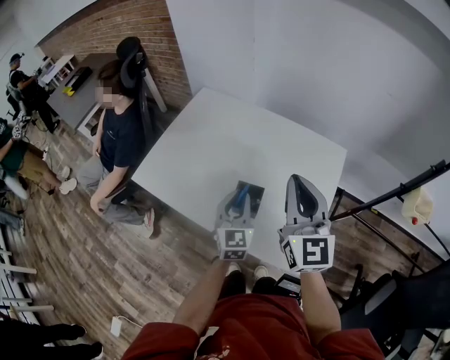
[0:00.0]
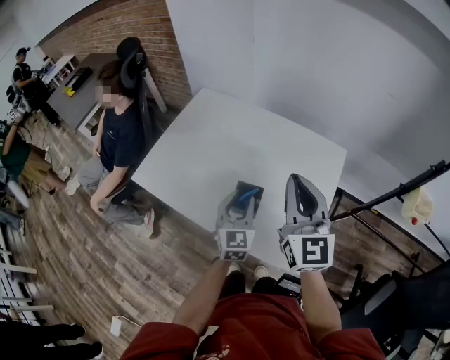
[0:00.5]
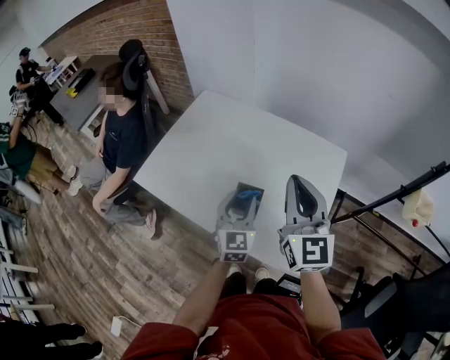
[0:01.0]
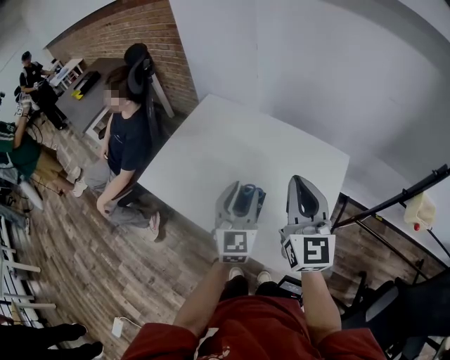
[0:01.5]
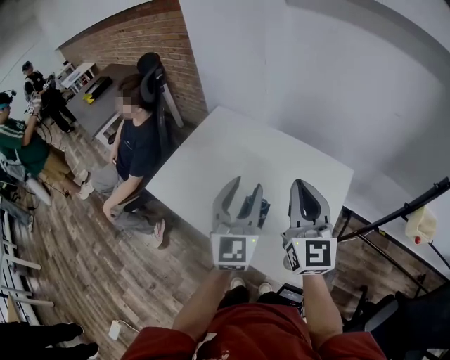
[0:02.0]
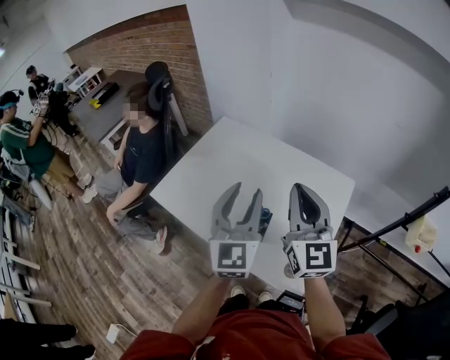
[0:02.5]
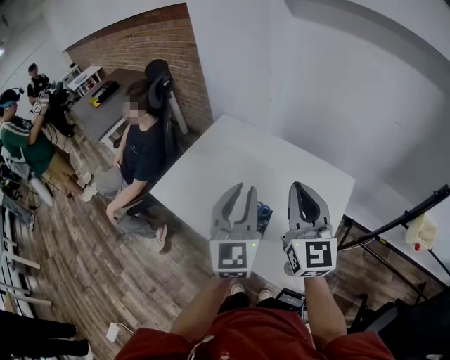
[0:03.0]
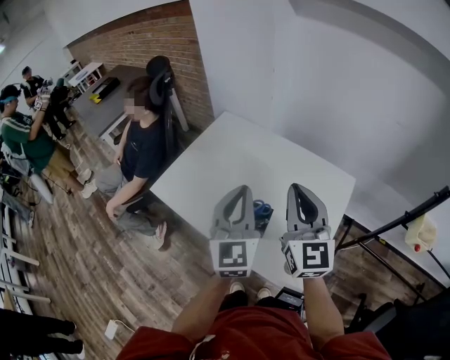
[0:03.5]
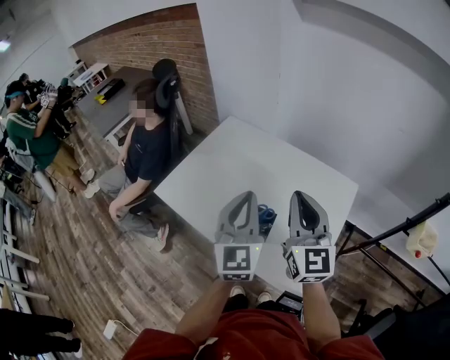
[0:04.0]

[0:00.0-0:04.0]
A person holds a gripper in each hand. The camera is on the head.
0:00.0 to 0:02.0: The left gripper goes roughly 20 cm upward, and opens up.
0:02.0 to 0:04.0: The left gripper closes.

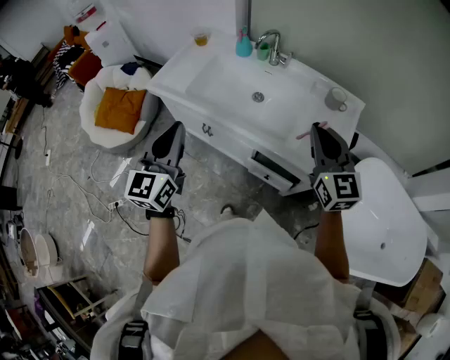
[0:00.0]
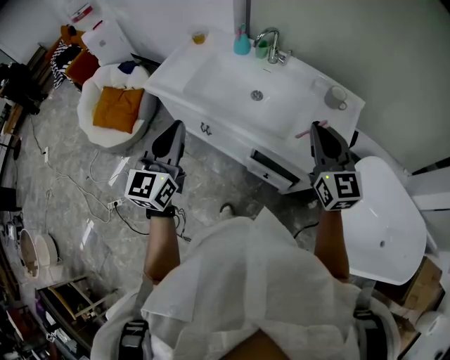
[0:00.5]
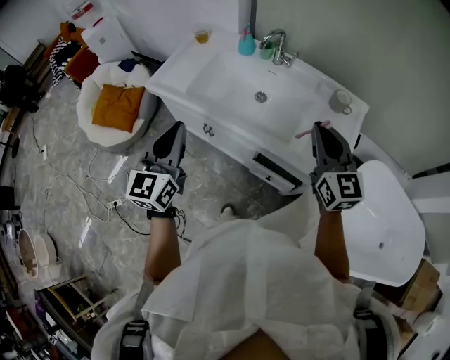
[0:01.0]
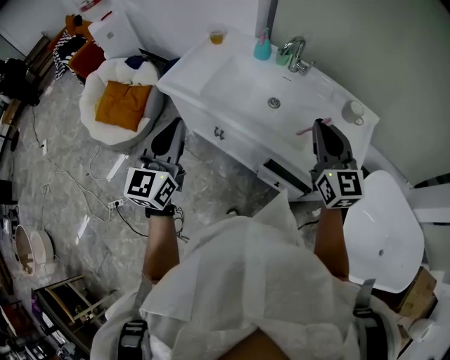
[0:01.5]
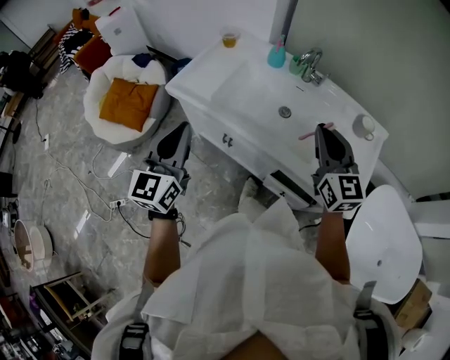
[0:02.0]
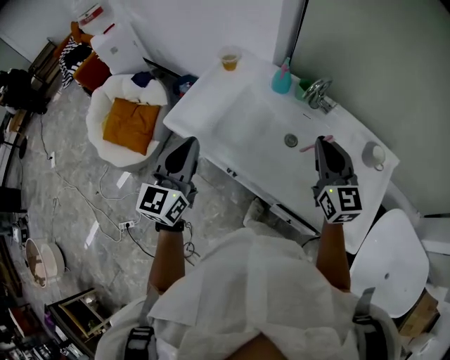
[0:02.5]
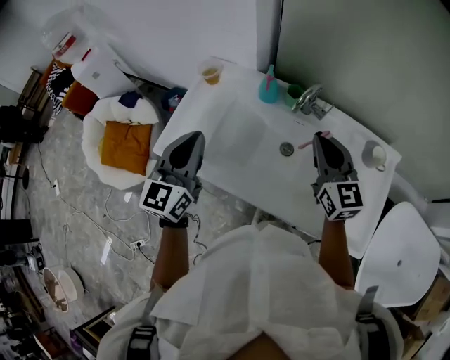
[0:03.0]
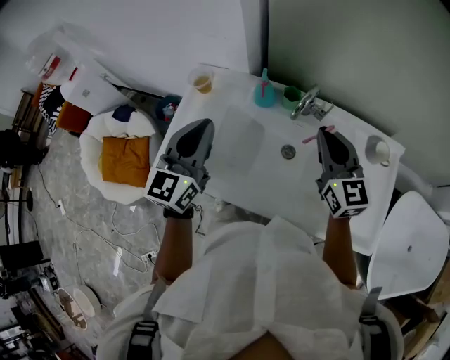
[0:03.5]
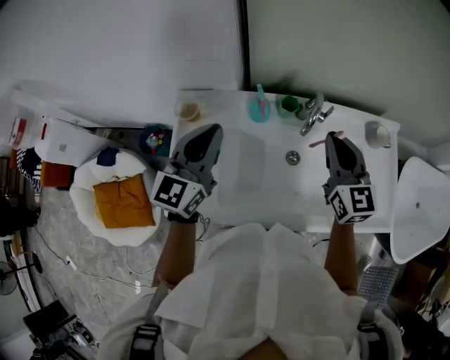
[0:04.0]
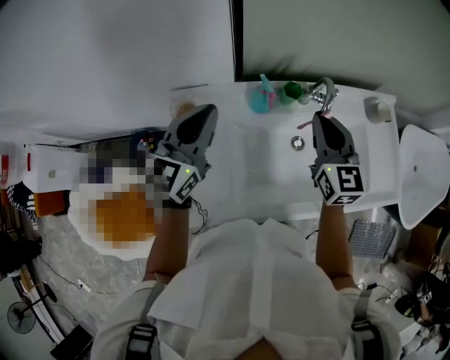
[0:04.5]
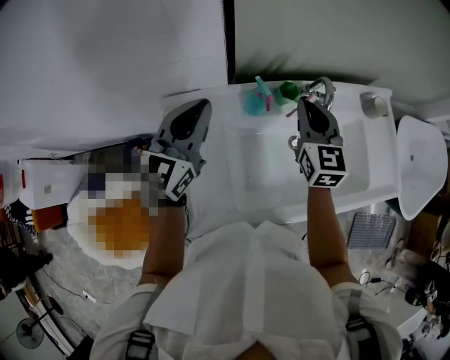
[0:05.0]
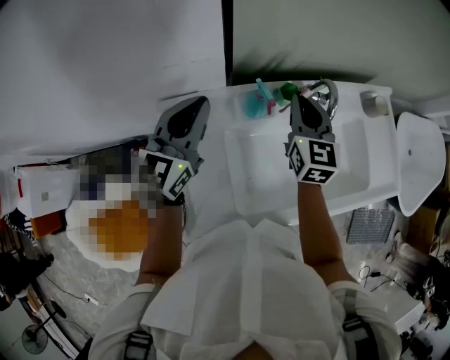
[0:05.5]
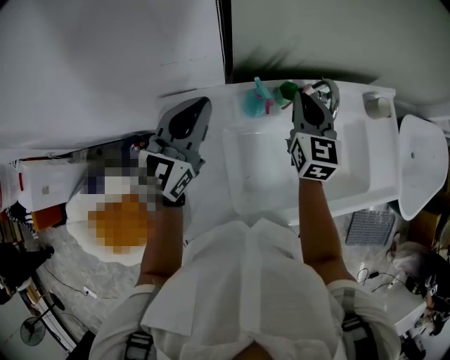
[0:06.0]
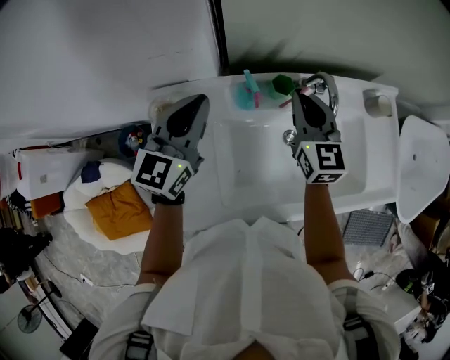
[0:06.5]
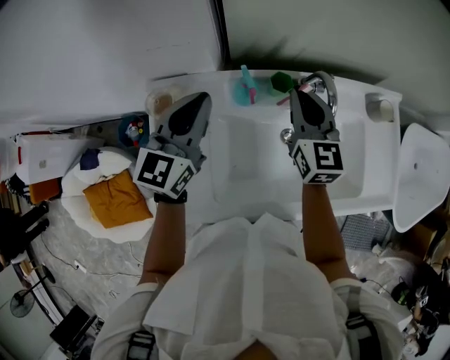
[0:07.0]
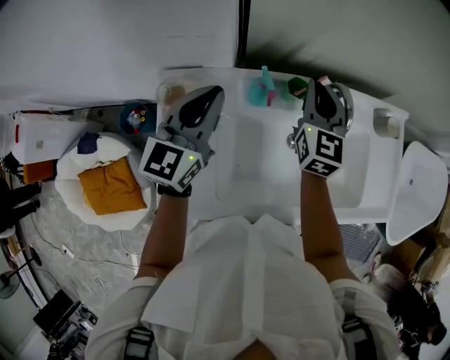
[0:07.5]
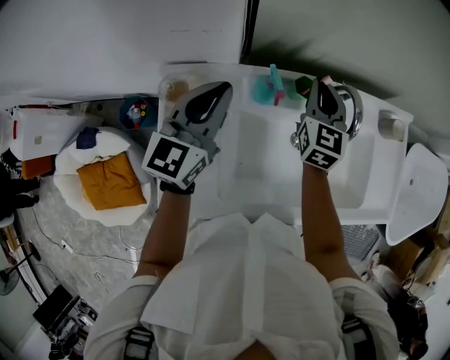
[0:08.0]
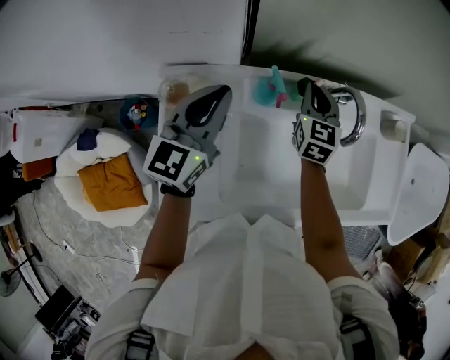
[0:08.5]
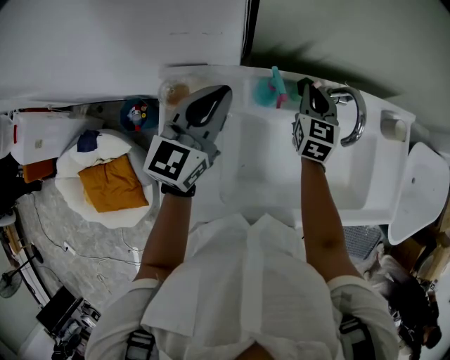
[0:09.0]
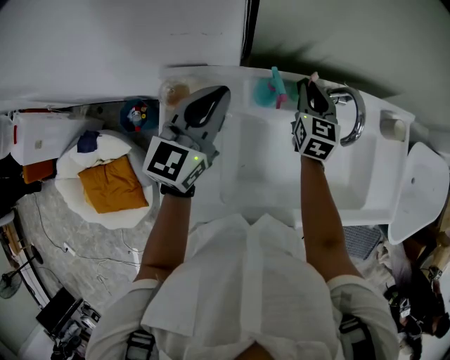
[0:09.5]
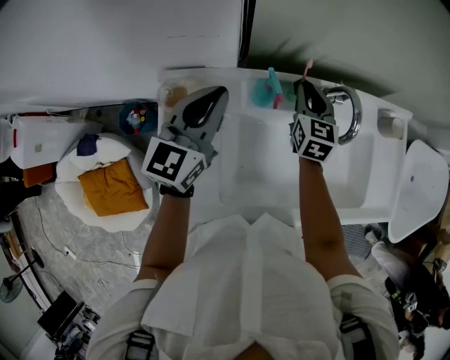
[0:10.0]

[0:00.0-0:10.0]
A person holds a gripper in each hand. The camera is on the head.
0:00.0 to 0:02.0: The two grippers go some 15 cm to the left and forward.
0:02.0 to 0:04.0: The right gripper changes place by some 25 cm, and rotates about 30 degrees, while the left gripper shifts by about 40 cm, and swivels some 40 degrees.
0:04.0 to 0:06.0: The left gripper is displaced forward and to the left by some 10 cm, while the right gripper moves to the left, forward and downward, about 15 cm, and rotates approximately 20 degrees.
0:06.0 to 0:08.0: The right gripper moves some 5 cm.
0:08.0 to 0:10.0: The right gripper heads downward, covering approximately 5 cm.

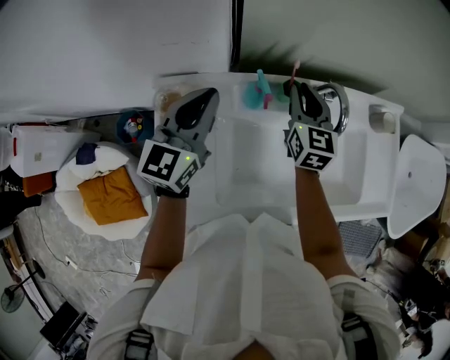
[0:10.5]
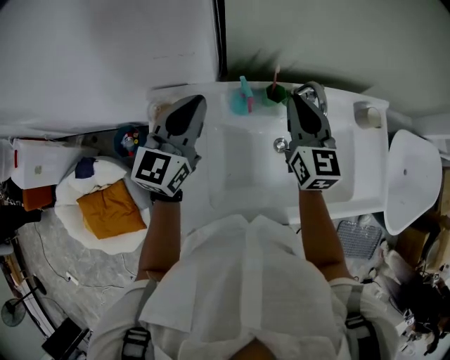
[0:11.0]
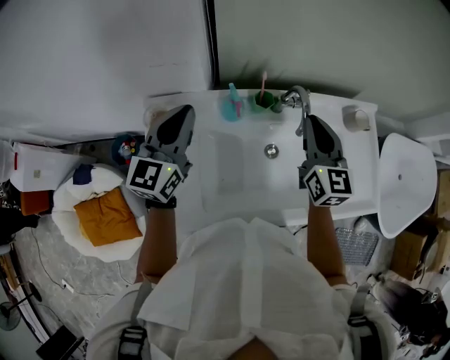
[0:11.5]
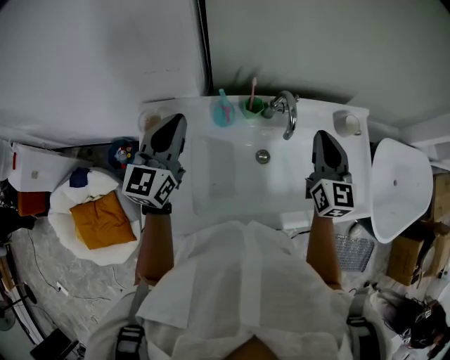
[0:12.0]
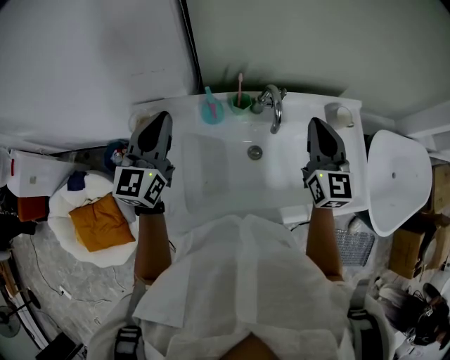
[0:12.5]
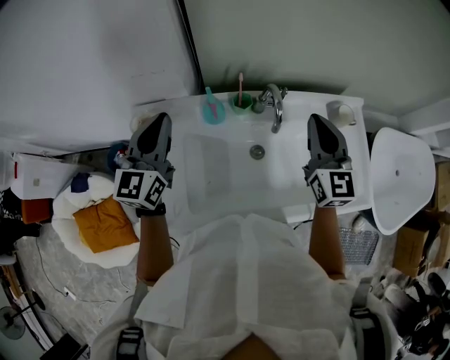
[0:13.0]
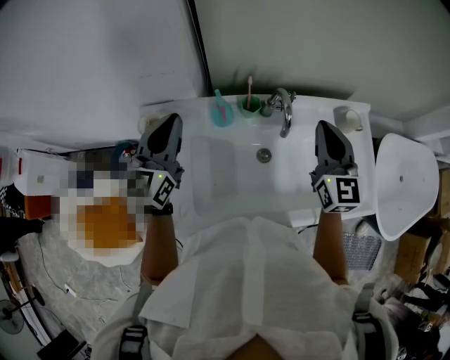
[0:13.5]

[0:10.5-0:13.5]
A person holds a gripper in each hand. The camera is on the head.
0:10.5 to 0:12.0: The left gripper changes place by about 5 cm, while the right gripper moves to the right, backward and upward, roughly 20 cm.
0:12.0 to 0:13.5: The grippers move only a little.

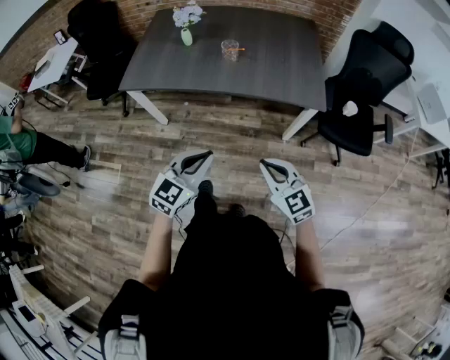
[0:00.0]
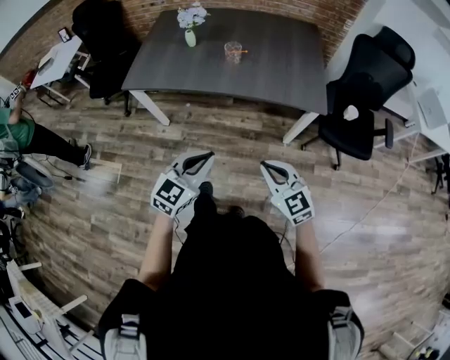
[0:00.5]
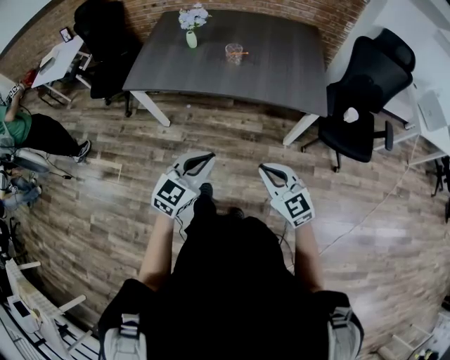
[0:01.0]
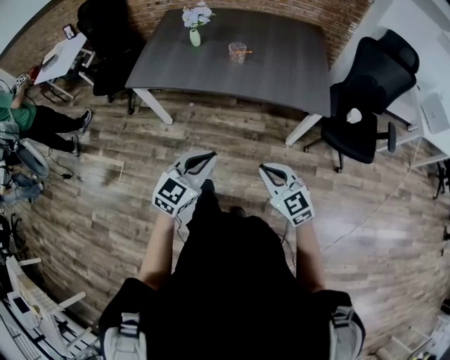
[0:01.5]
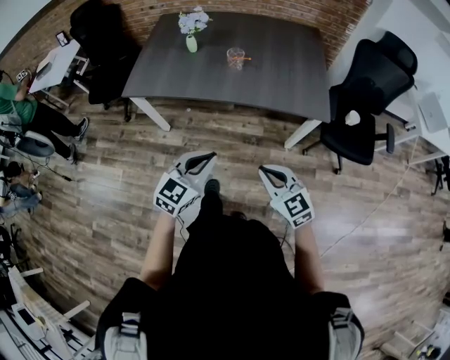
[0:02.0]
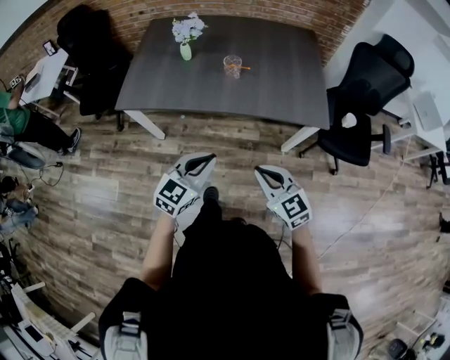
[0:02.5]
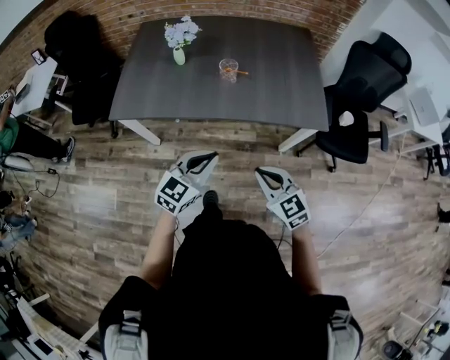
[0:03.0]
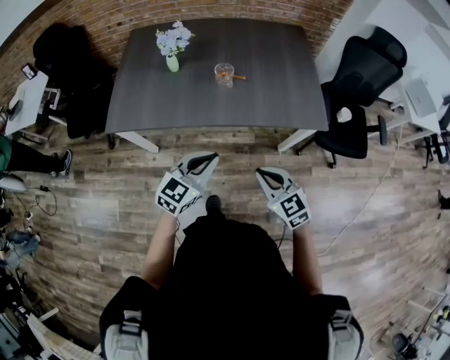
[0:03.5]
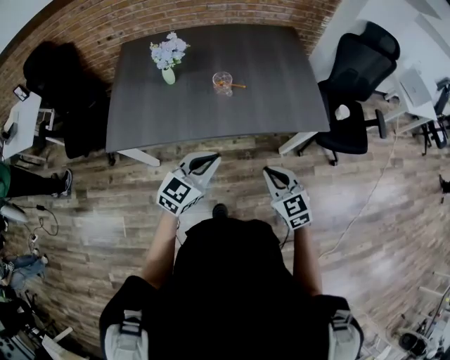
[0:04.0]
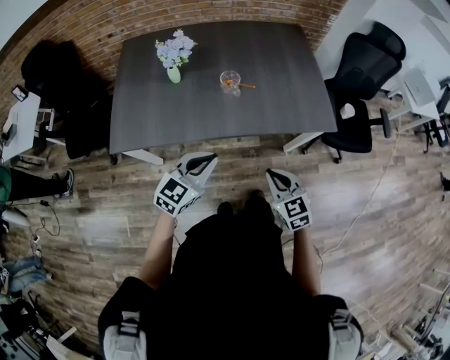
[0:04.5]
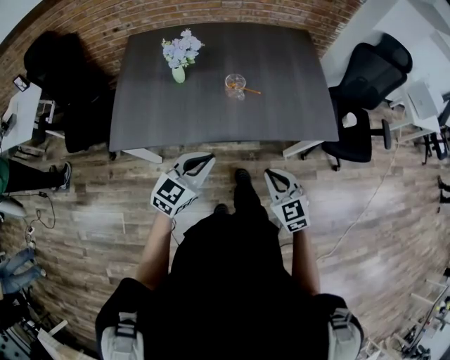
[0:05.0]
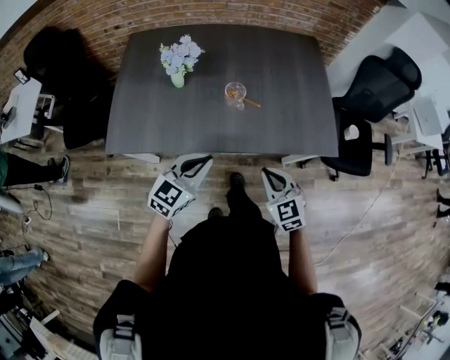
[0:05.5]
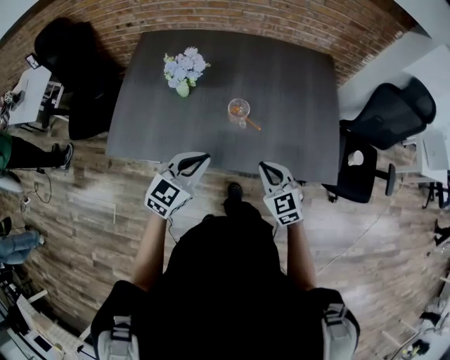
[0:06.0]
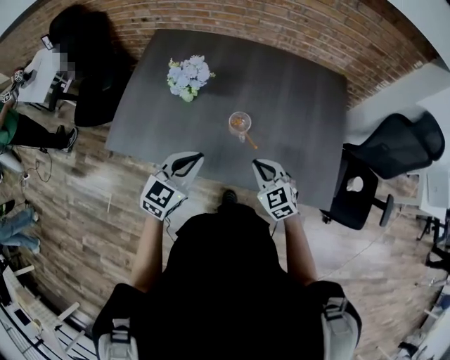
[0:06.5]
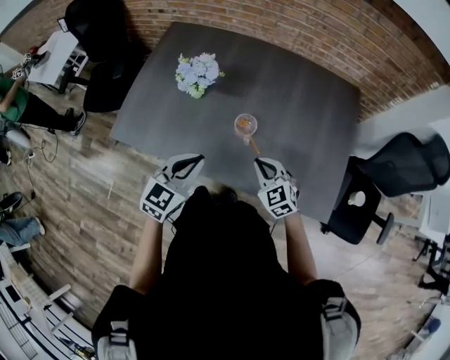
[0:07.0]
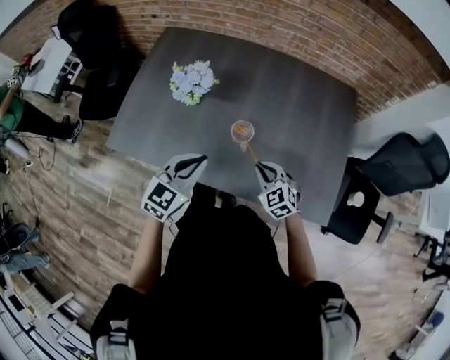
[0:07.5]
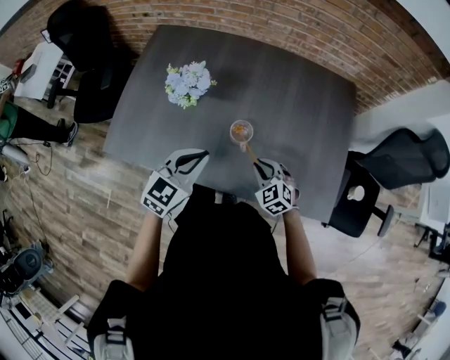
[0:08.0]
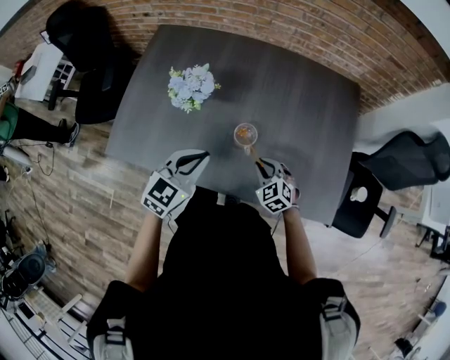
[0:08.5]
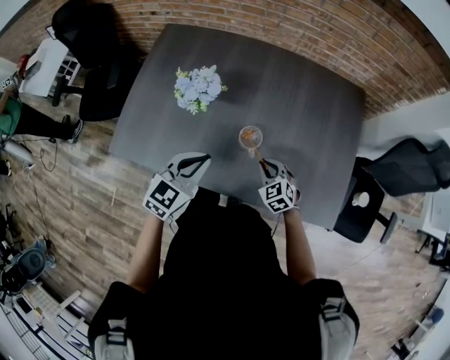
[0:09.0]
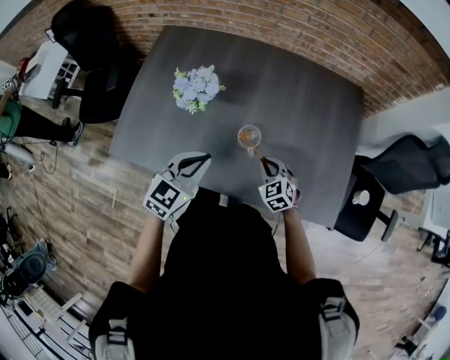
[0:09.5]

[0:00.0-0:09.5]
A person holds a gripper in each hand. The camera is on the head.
0:00.0 to 0:02.0: There are only small adjustments of the grippers.
0:02.0 to 0:04.0: The right gripper goes roughly 20 cm forward and to the left, and turns by about 20 degrees; the left gripper shifts some 20 cm forward.
0:04.0 to 0:05.5: The left gripper moves forward and to the left, roughly 10 cm; the right gripper shifts some 10 cm forward.
0:05.5 to 0:07.5: Both grippers move forward, roughly 20 cm. The right gripper rotates approximately 20 degrees.
0:07.5 to 0:09.5: The right gripper goes some 5 cm forward.
